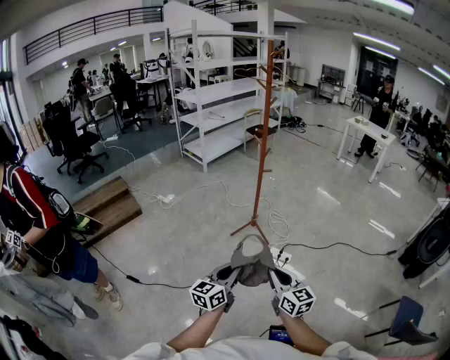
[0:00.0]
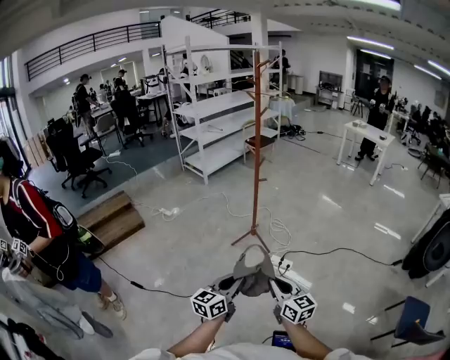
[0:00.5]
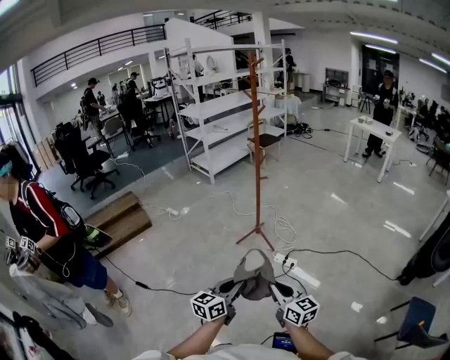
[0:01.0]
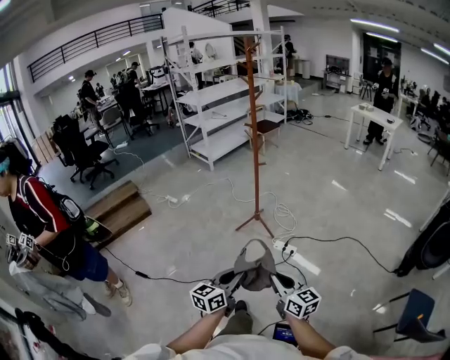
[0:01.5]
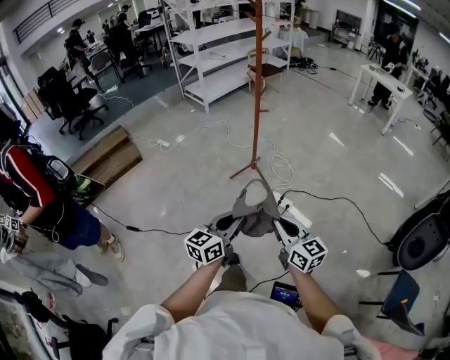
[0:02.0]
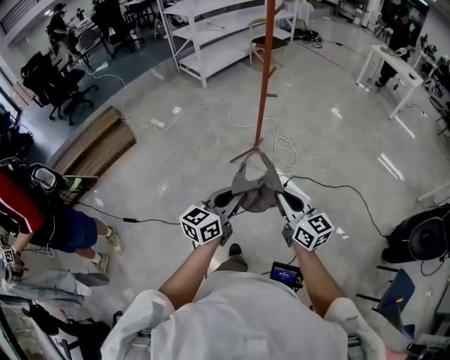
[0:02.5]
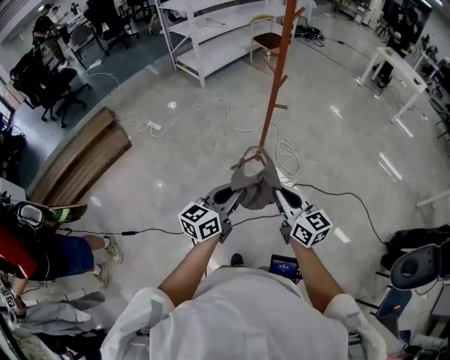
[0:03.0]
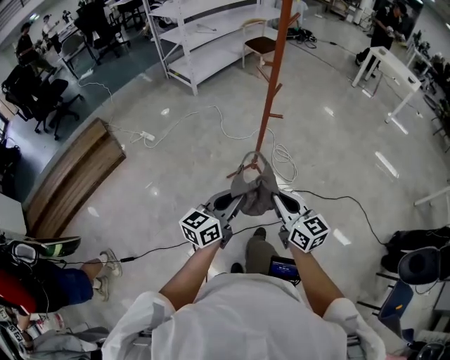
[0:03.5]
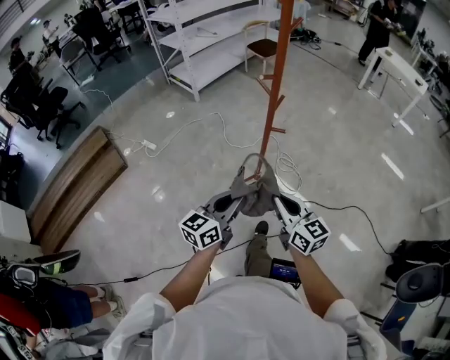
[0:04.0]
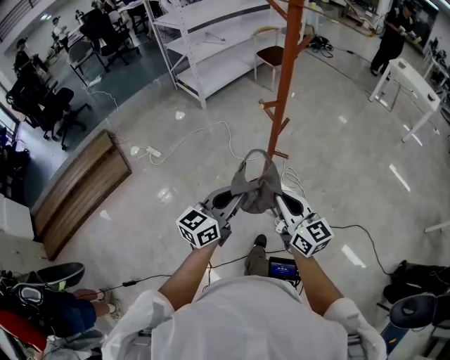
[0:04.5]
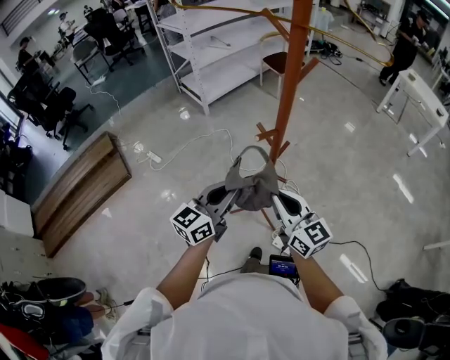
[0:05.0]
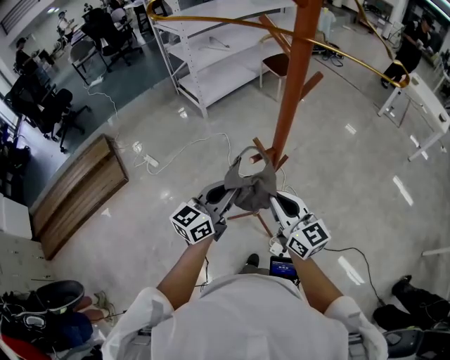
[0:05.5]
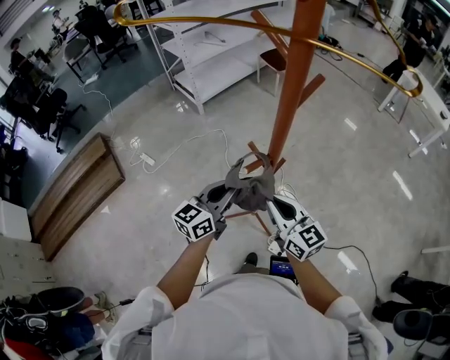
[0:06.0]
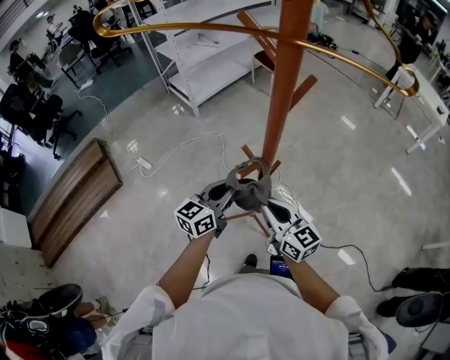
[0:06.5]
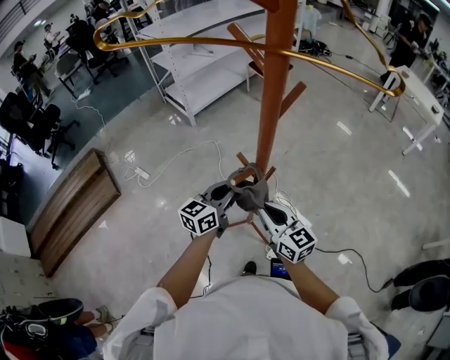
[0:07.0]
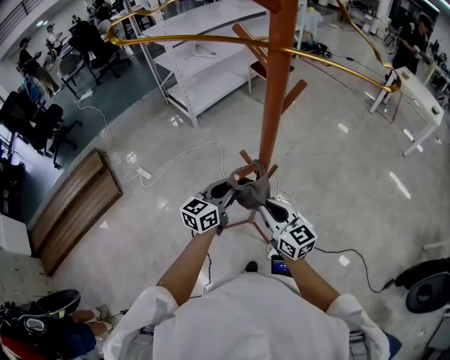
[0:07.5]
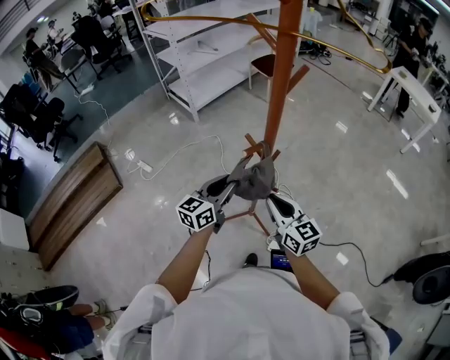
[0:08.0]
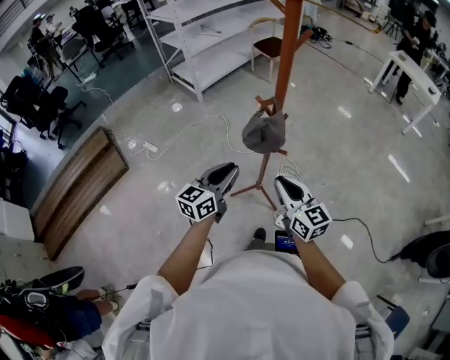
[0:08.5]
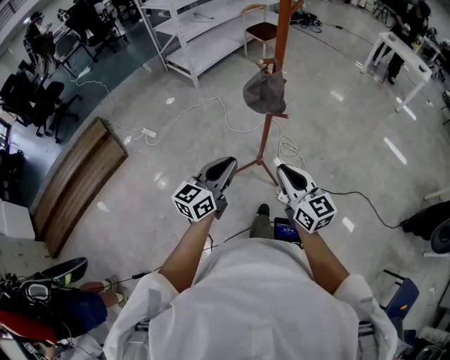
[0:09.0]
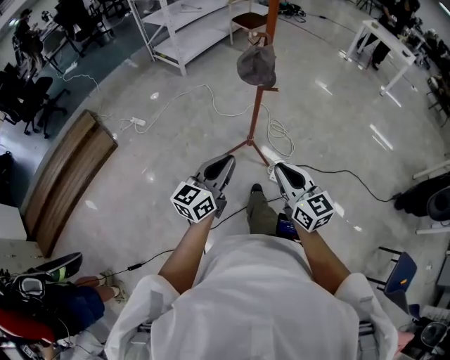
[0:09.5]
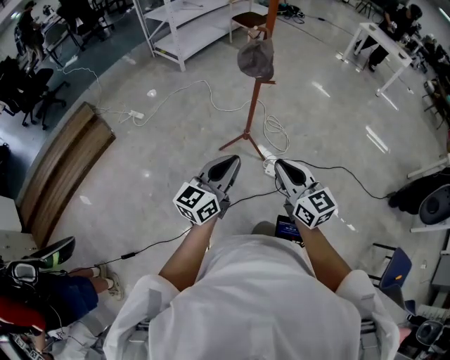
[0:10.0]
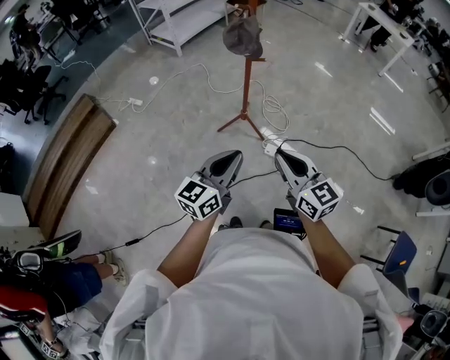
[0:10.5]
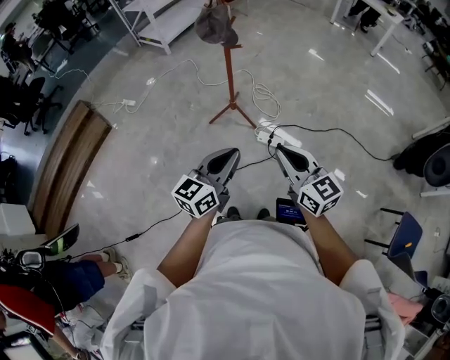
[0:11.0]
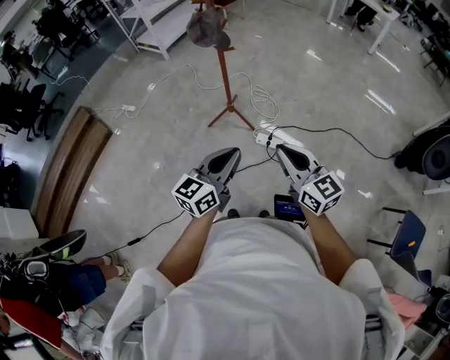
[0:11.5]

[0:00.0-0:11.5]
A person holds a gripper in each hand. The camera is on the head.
0:00.0 to 0:02.0: Both grippers travel together to the right, some 10 cm.
0:02.0 to 0:04.0: Both grippers are carried forward, roughly 40 cm.
0:04.0 to 0:06.0: The two grippers go approximately 35 cm forward.
0:06.0 to 0:07.5: The left gripper shifts by about 5 cm.
0:07.5 to 0:09.5: Both grippers are carried backward, some 40 cm.
0:09.5 to 0:11.5: The grippers both shift to the right and backward by about 25 cm.

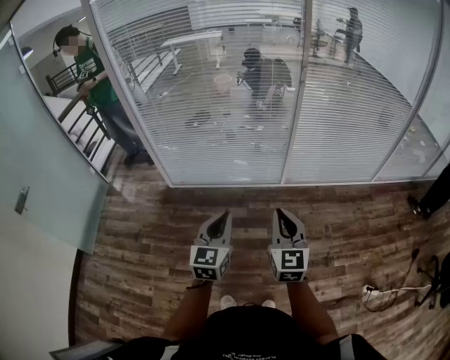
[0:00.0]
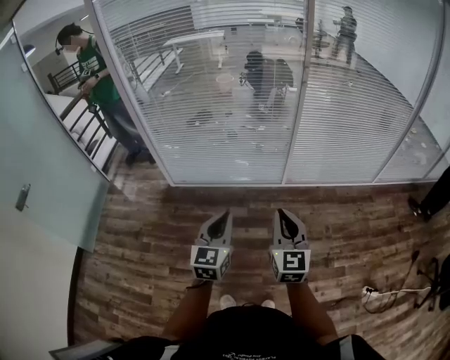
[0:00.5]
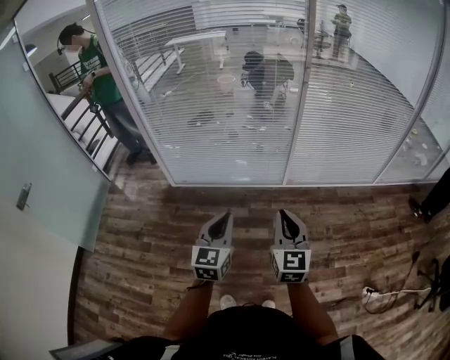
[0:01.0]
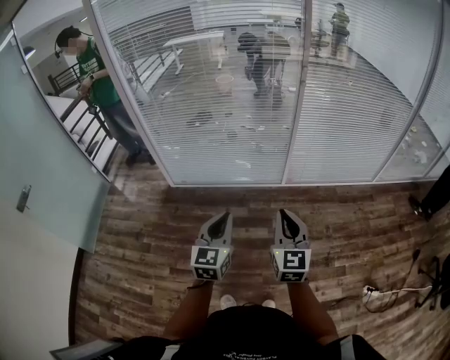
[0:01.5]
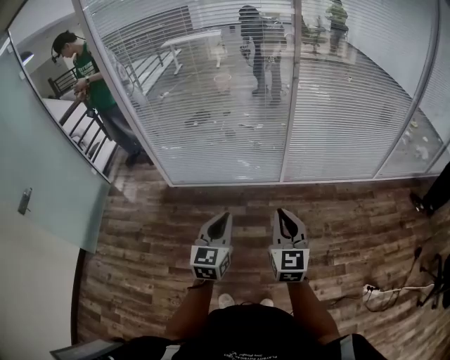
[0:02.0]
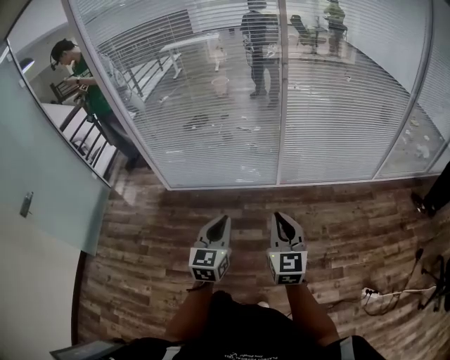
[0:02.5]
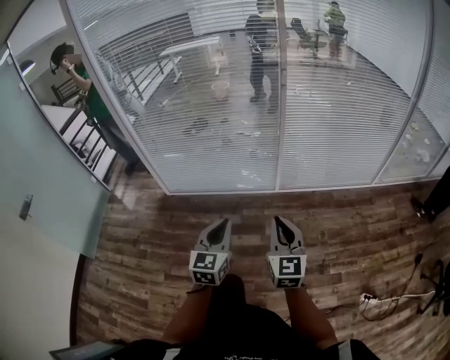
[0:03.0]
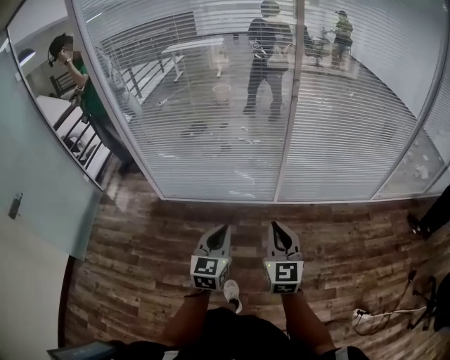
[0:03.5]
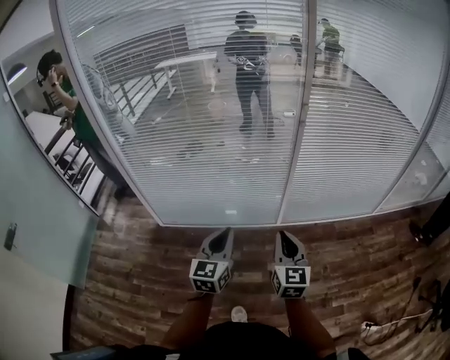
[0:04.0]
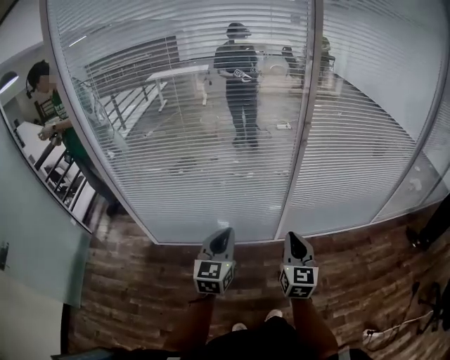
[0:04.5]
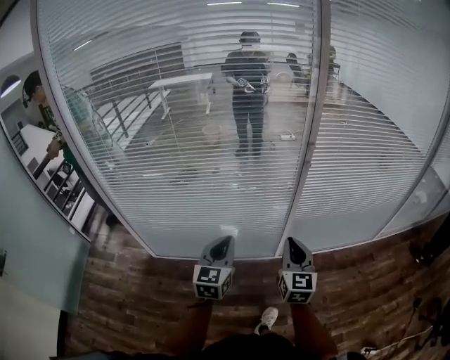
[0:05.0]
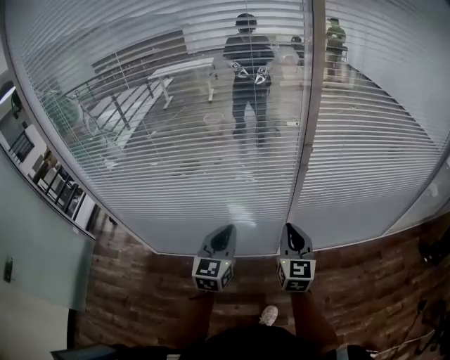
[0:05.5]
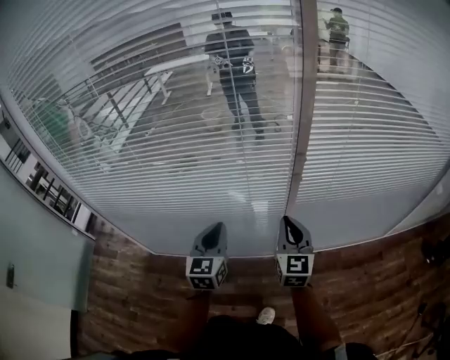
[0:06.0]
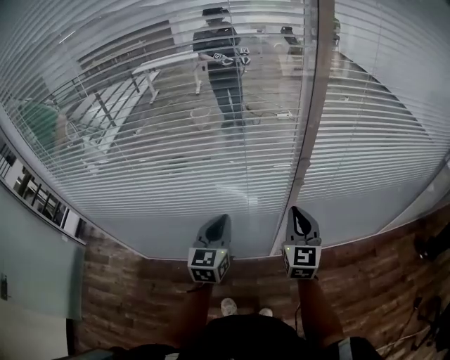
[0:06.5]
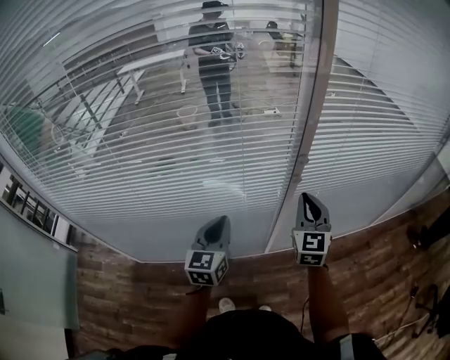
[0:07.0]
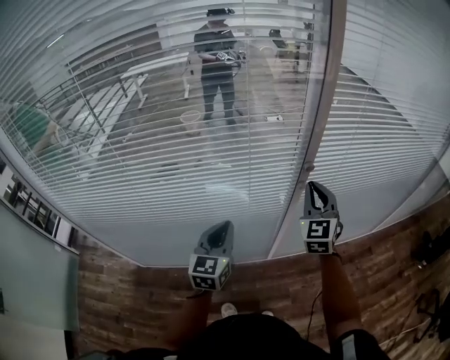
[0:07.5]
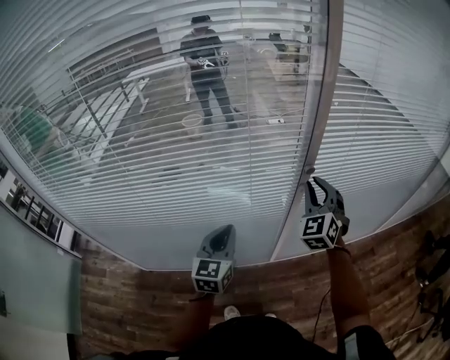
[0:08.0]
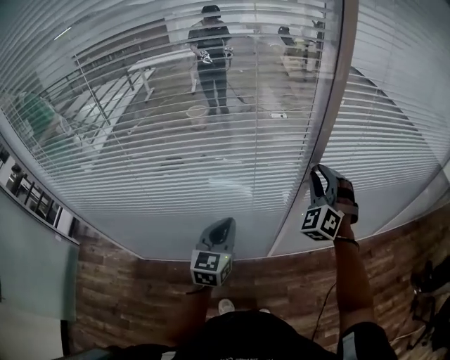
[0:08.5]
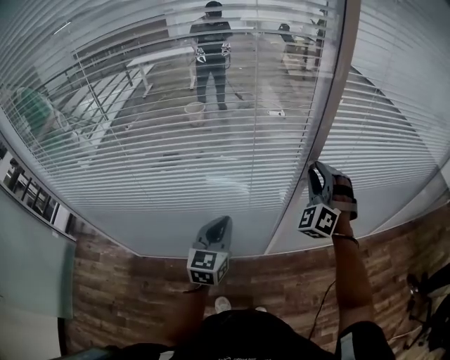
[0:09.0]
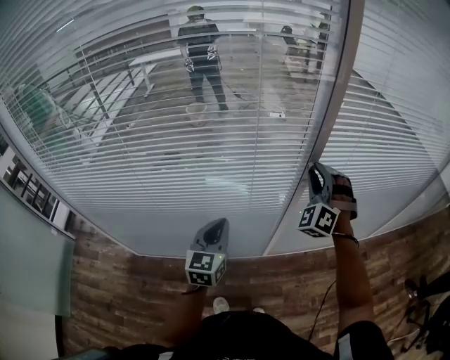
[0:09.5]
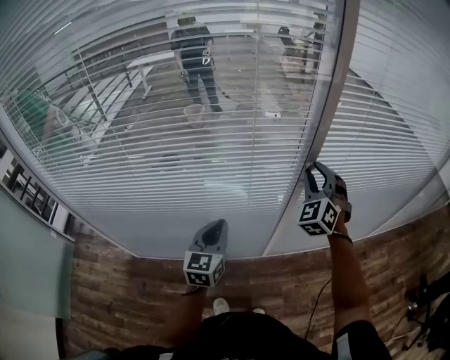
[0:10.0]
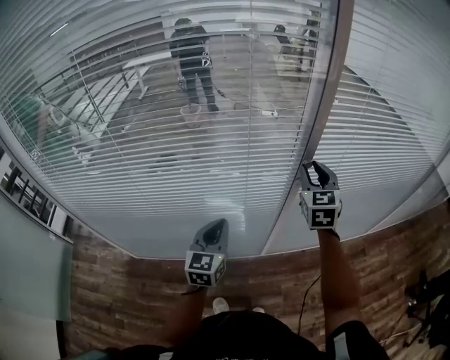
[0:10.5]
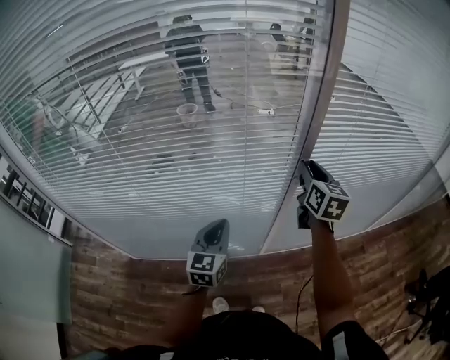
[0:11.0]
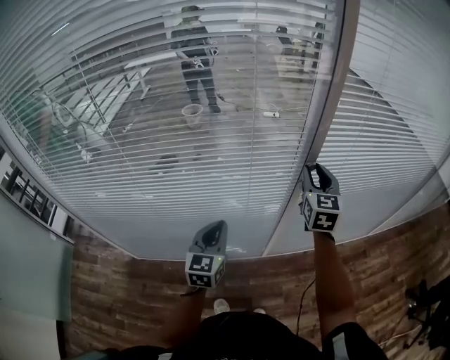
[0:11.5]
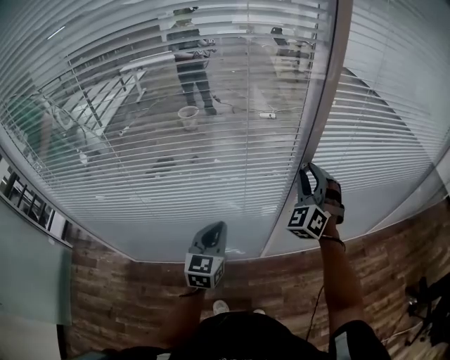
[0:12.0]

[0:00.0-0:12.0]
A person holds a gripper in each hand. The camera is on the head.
0:00.0 to 0:02.0: The right gripper moves about 5 cm.
0:02.0 to 0:04.0: The two grippers go roughly 20 cm forward.
0:04.0 to 0:06.0: Both grippers move forward, about 35 cm.
0:06.0 to 0:08.0: The left gripper moves forward, about 5 cm; the right gripper travels forward and upward by about 15 cm, and rolls counterclockwise, seen from behind, by roughly 40 degrees.

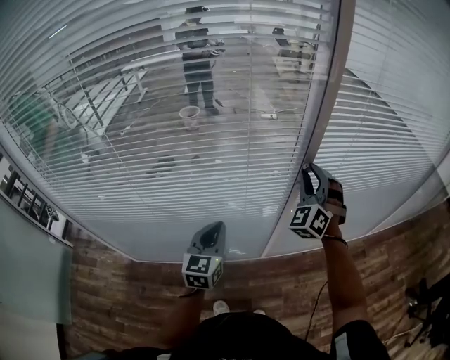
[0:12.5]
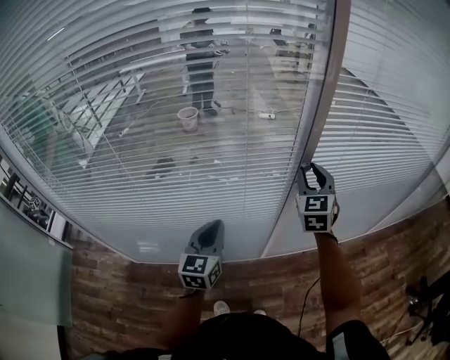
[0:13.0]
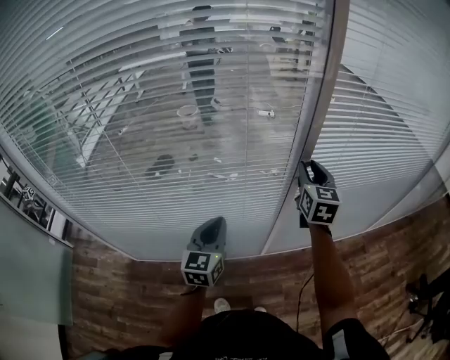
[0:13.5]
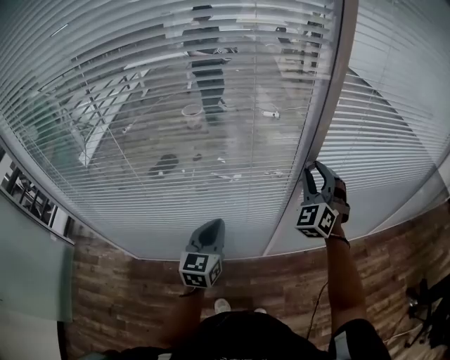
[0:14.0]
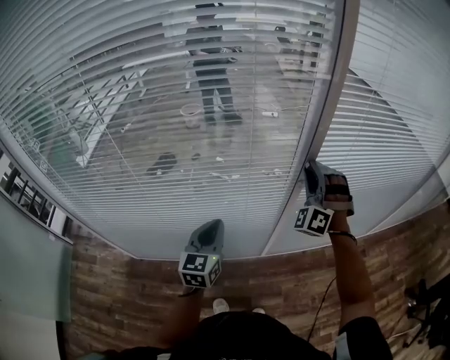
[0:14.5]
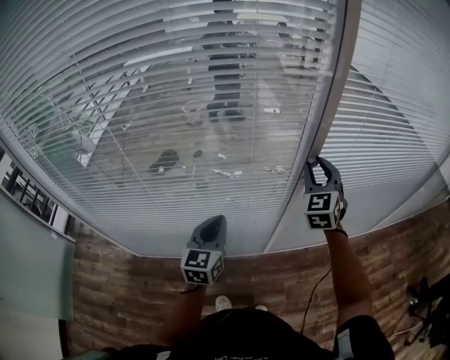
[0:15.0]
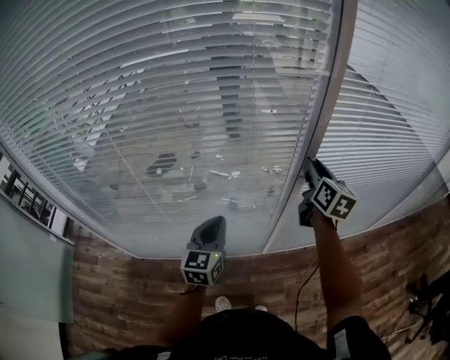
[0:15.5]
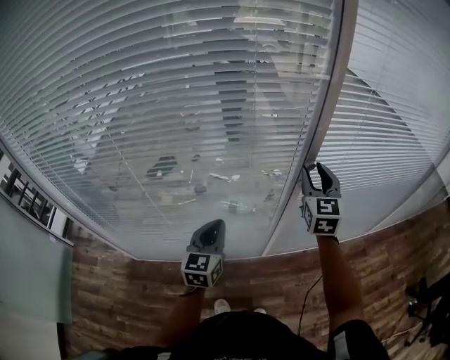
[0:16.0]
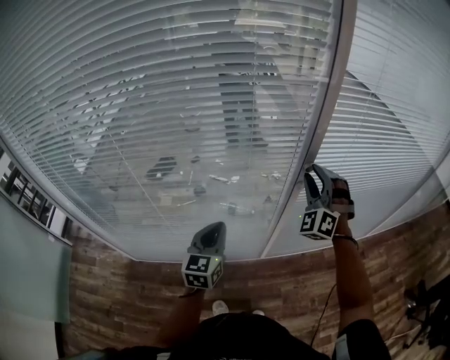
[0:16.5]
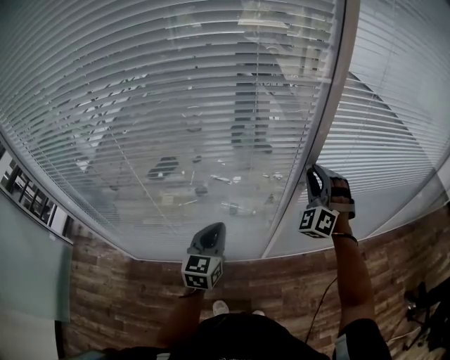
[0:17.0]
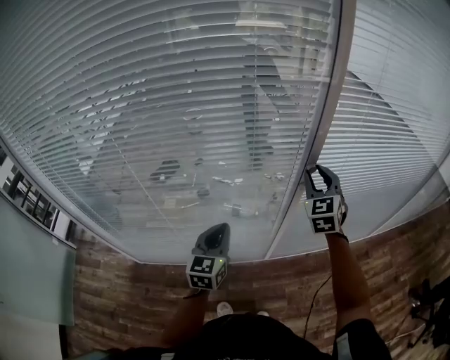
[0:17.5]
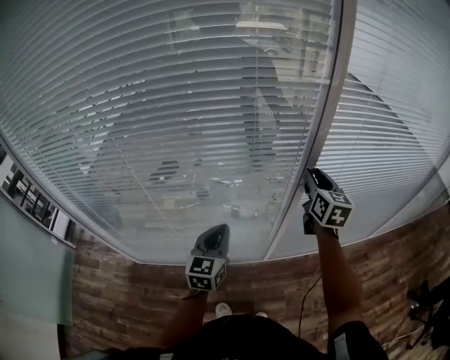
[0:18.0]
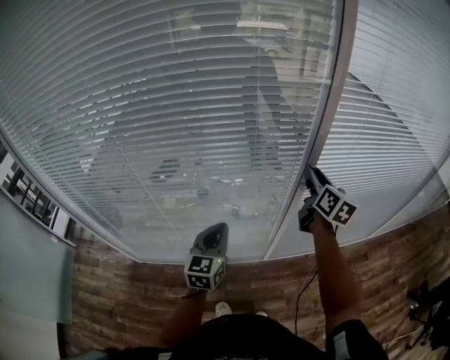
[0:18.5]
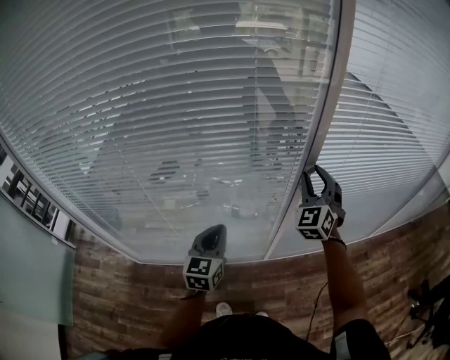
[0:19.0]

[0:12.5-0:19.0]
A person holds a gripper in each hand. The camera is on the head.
0:12.5 to 0:14.5: The right gripper changes its angle by approximately 20 degrees.
0:17.0 to 0:19.0: The right gripper changes its angle by some 30 degrees.
